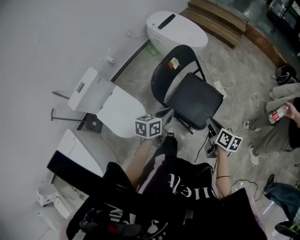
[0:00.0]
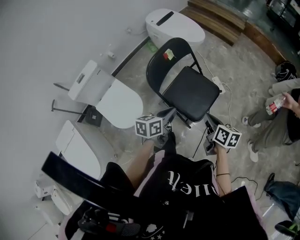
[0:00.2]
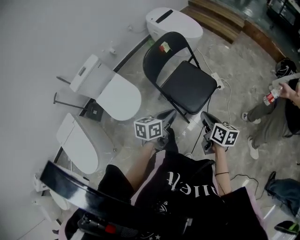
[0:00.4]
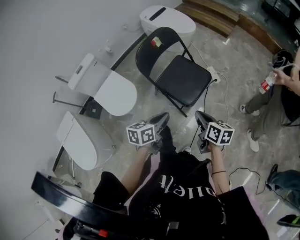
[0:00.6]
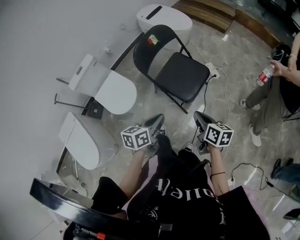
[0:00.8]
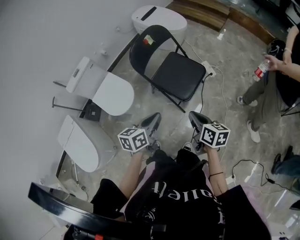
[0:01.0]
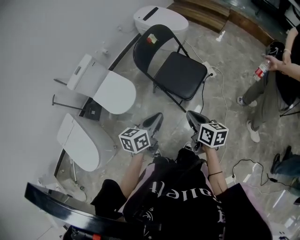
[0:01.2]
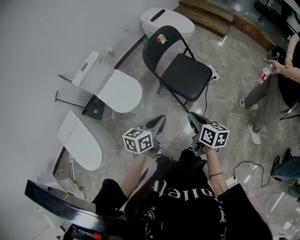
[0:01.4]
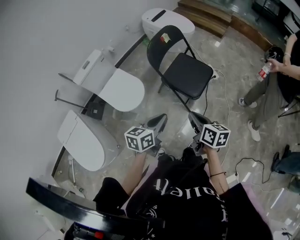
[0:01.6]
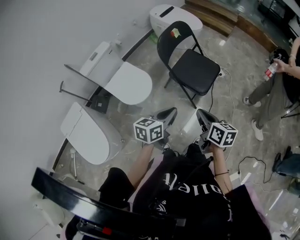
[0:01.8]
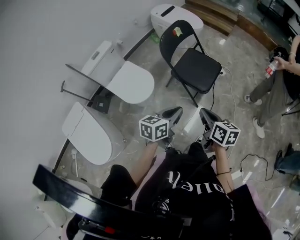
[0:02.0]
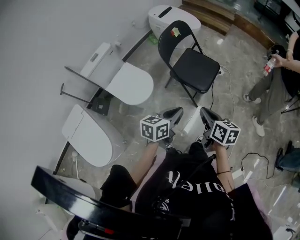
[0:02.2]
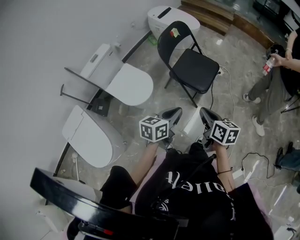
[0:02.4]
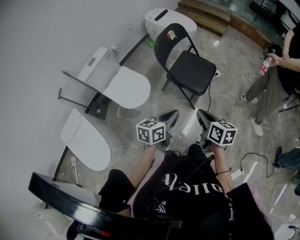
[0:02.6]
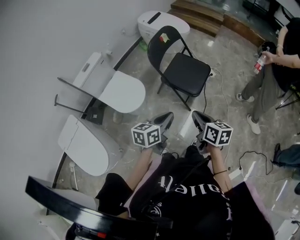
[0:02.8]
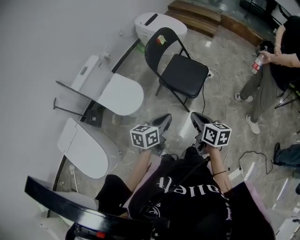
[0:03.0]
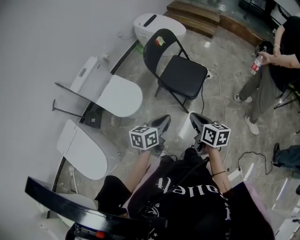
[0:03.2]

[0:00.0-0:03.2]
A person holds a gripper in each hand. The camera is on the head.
0:00.0 to 0:01.6: The two grippers go roughly 30 cm backward.
0:01.6 to 0:03.2: There are only small adjustments of the grippers.

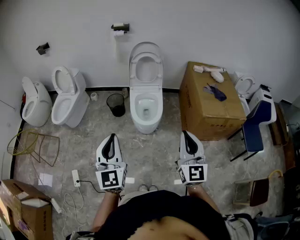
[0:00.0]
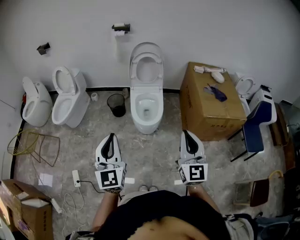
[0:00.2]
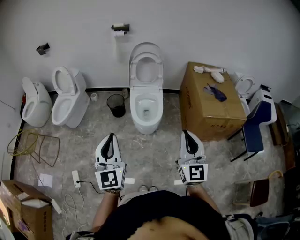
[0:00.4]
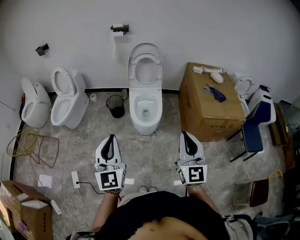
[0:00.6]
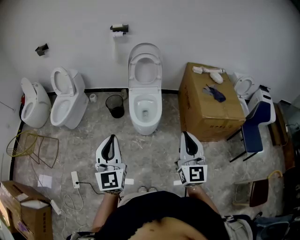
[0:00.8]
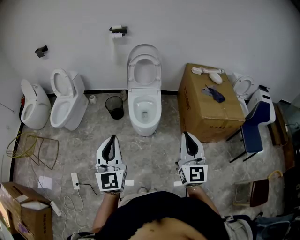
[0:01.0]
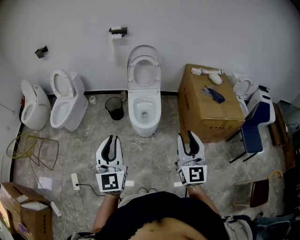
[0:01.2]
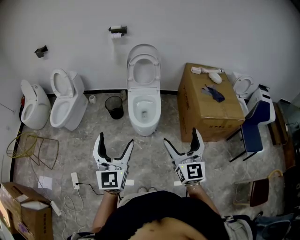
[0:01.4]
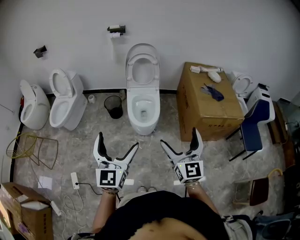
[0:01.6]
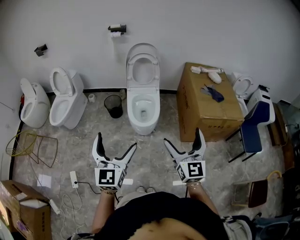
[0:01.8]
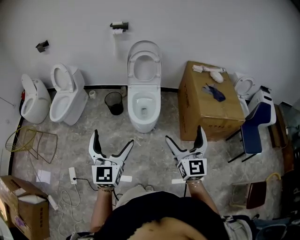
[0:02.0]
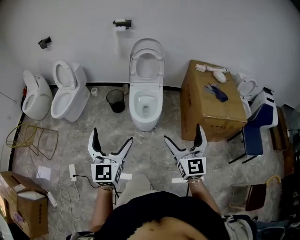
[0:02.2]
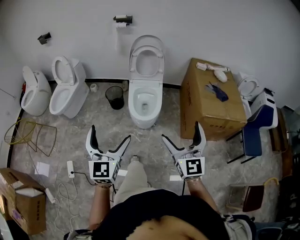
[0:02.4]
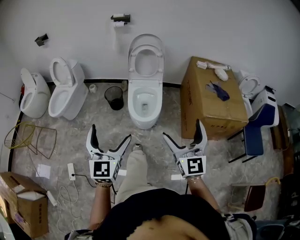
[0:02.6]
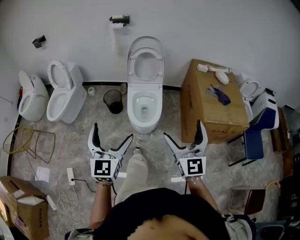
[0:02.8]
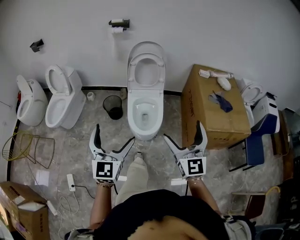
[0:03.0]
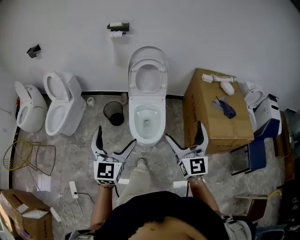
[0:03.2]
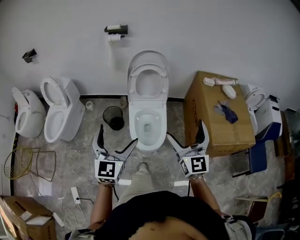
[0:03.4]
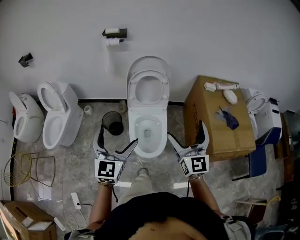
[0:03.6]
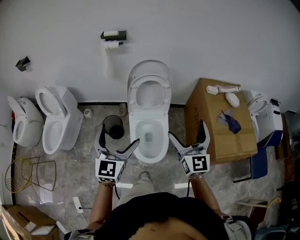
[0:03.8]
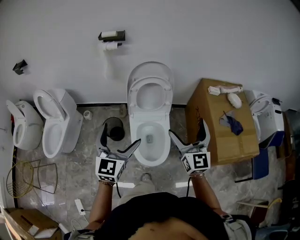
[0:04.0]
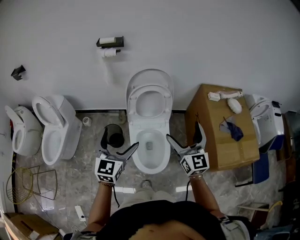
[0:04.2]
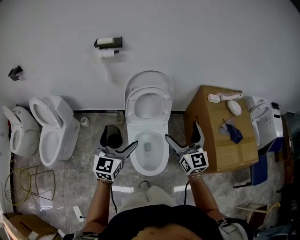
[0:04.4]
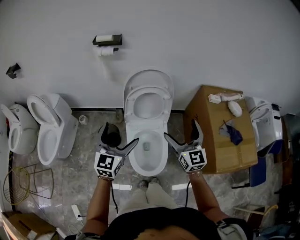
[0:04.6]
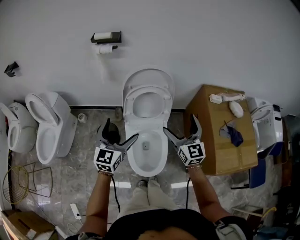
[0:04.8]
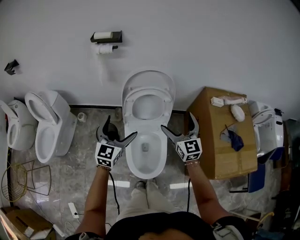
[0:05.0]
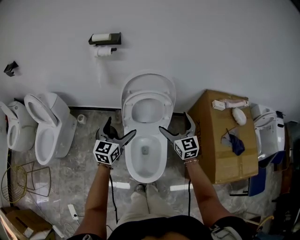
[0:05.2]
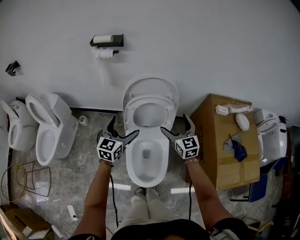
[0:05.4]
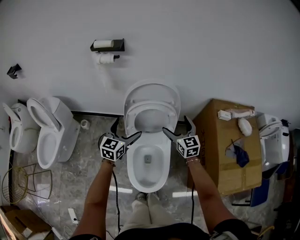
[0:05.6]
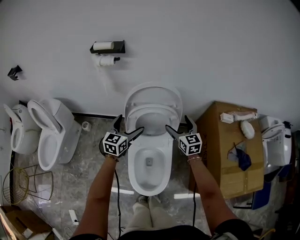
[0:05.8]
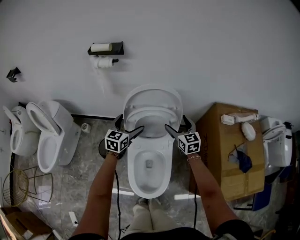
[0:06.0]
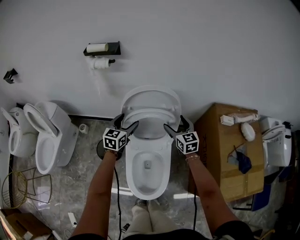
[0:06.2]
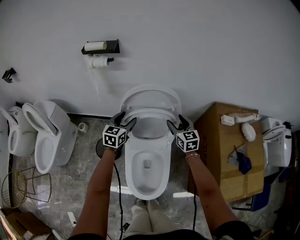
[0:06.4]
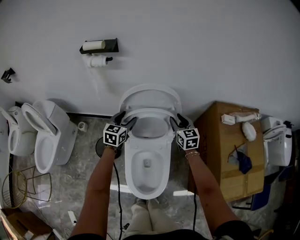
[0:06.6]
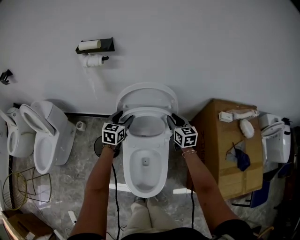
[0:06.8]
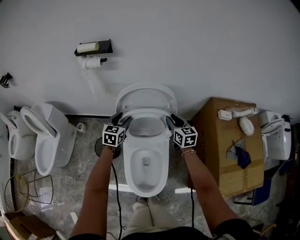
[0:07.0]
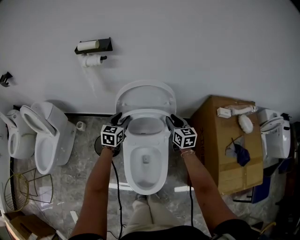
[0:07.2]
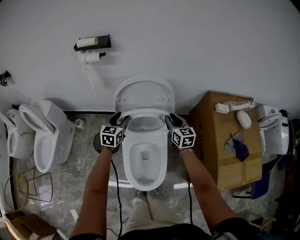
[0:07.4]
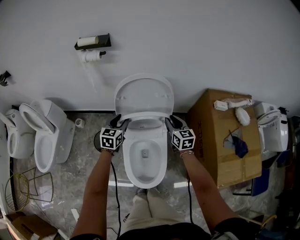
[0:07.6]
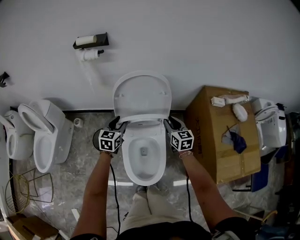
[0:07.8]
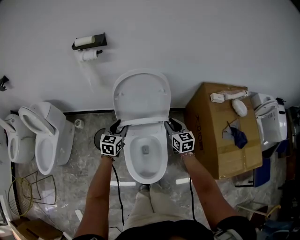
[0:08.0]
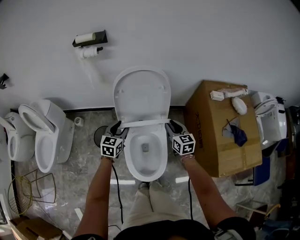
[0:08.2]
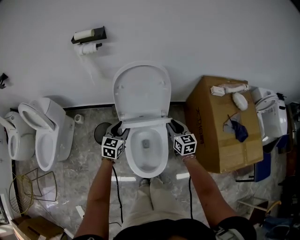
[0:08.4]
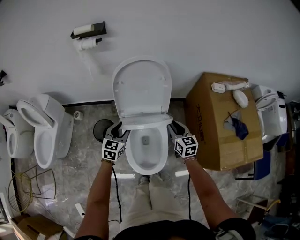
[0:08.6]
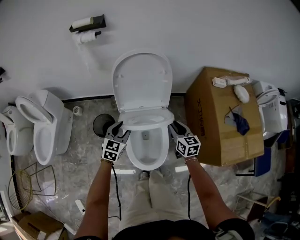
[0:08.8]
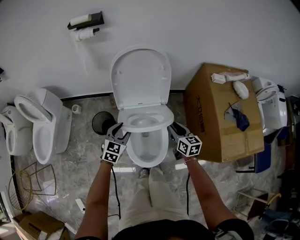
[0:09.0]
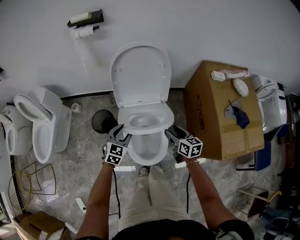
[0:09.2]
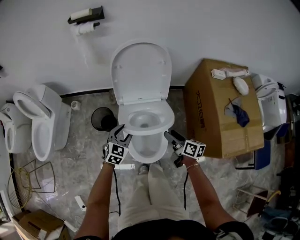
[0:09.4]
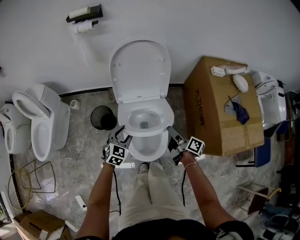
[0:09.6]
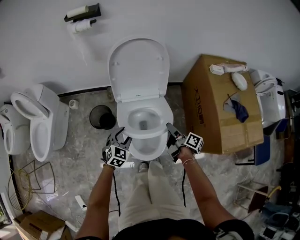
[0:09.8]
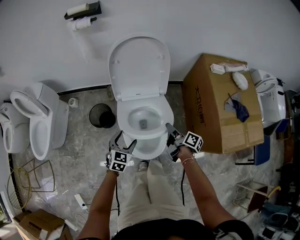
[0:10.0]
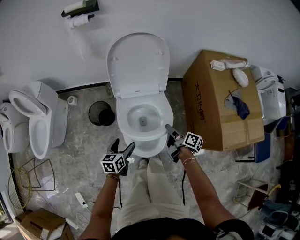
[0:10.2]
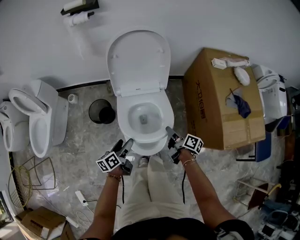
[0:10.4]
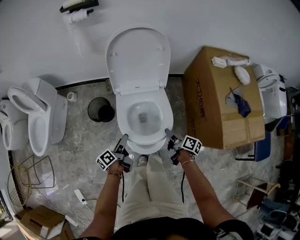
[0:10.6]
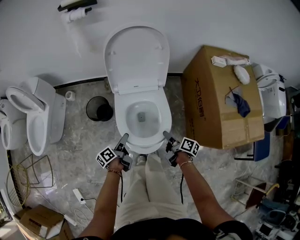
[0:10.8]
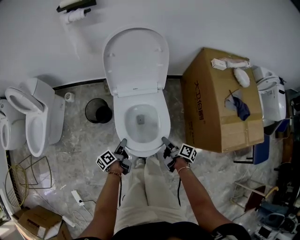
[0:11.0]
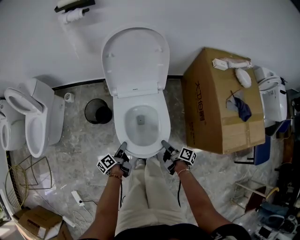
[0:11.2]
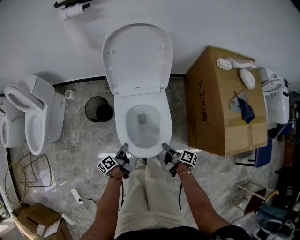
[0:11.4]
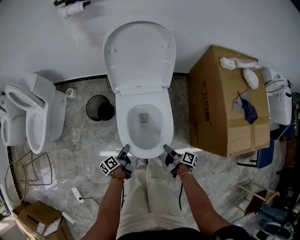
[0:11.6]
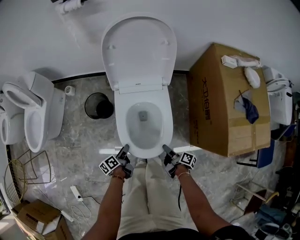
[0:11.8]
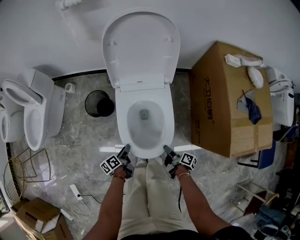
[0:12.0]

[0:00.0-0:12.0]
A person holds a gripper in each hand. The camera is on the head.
0:00.0 to 0:01.6: The right gripper opens up; the left gripper opens.
0:01.6 to 0:03.0: Both grippers travel together forward, some 15 cm.
0:03.0 to 0:04.4: Both grippers move forward, roughly 40 cm.
0:04.4 to 0:06.0: Both grippers travel together forward and downward, roughly 35 cm. The right gripper swivels approximately 20 degrees.
0:06.0 to 0:07.6: The left gripper travels forward and back again, about 5 cm each way, and closes. Meanwhile the right gripper moves approximately 5 cm, and closes.
0:07.6 to 0:09.0: Both grippers move backward, some 20 cm.
0:09.0 to 0:10.4: The two grippers go some 15 cm backward and downward. The left gripper rolls counterclockwise, seen from behind, by some 70 degrees, and opens. Meanwhile the right gripper twists approximately 50 degrees clockwise, seen from behind.
0:10.4 to 0:12.0: The left gripper travels downward by approximately 15 cm, rotates some 20 degrees, and closes its fingers, while the right gripper goes roughly 20 cm downward and backward.

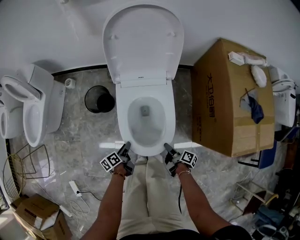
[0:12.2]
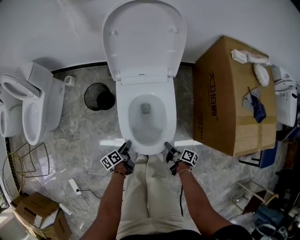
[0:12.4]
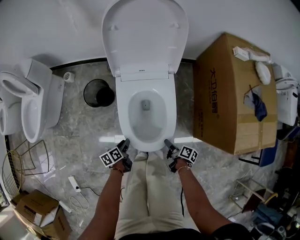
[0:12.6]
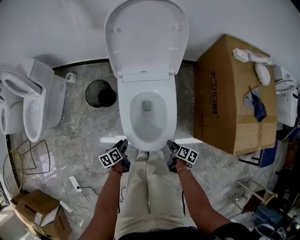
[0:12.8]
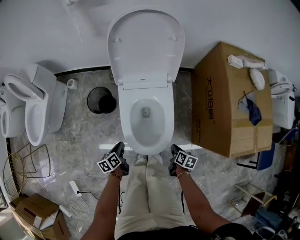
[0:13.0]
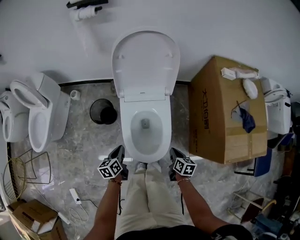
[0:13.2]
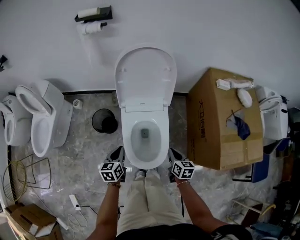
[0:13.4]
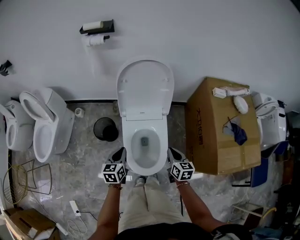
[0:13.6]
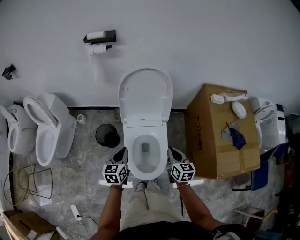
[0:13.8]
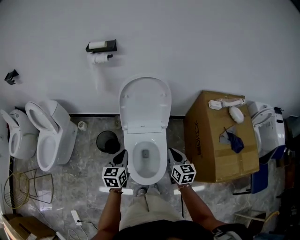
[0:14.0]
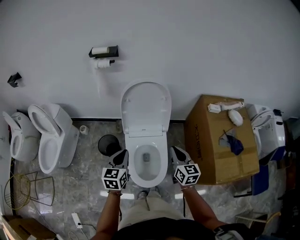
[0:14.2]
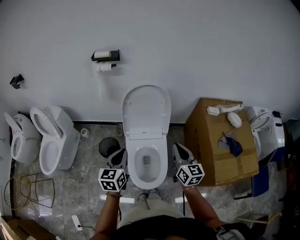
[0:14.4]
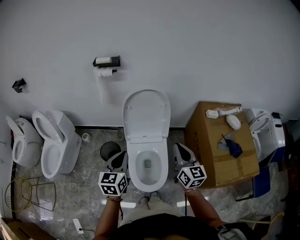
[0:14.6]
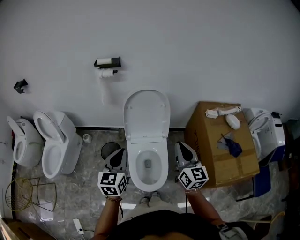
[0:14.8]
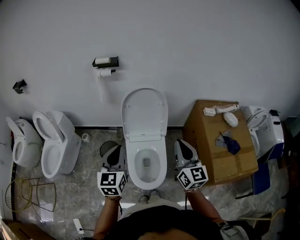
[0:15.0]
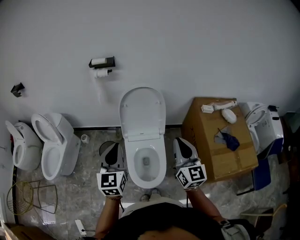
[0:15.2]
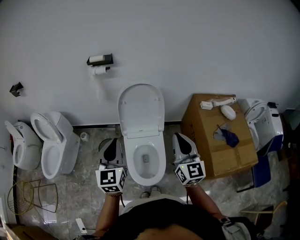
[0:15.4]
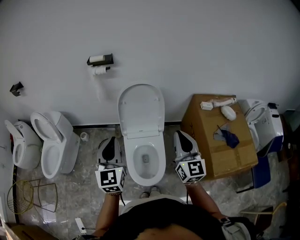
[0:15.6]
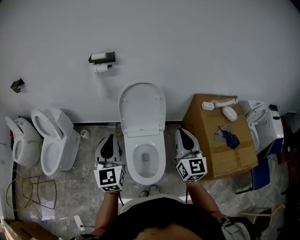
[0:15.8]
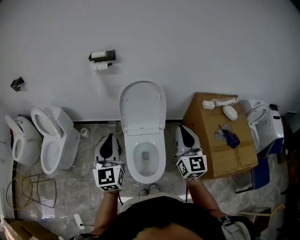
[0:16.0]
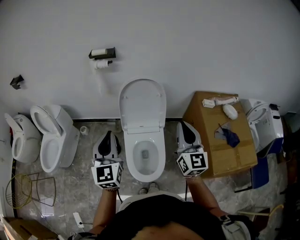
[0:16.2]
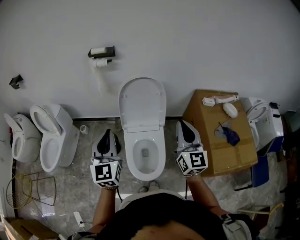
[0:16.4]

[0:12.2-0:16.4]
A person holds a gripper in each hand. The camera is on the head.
0:12.2 to 0:13.6: The left gripper goes about 25 cm upward, and twists roughly 50 degrees clockwise, seen from behind; the right gripper moves upward and forward, roughly 25 cm, and rolls counterclockwise, seen from behind, by about 70 degrees.
0:13.6 to 0:15.0: Both grippers travel together upward, roughly 30 cm. The right gripper tilts its fingers some 30 degrees upward, while the left gripper changes its angle by some 30 degrees.
0:15.0 to 0:16.4: The left gripper moves about 5 cm.

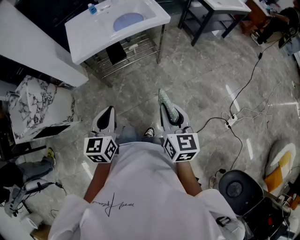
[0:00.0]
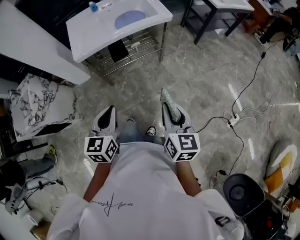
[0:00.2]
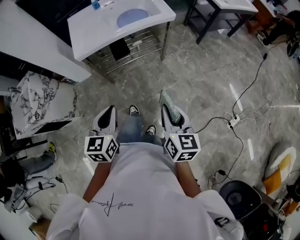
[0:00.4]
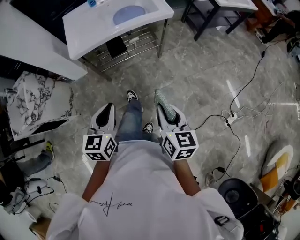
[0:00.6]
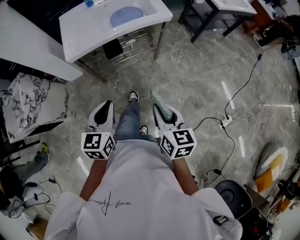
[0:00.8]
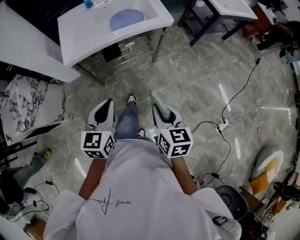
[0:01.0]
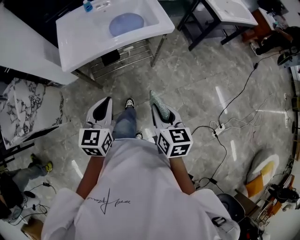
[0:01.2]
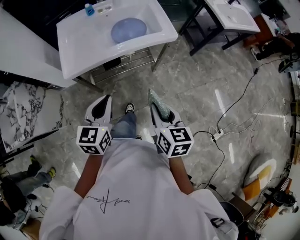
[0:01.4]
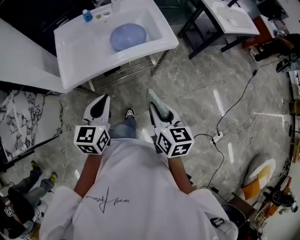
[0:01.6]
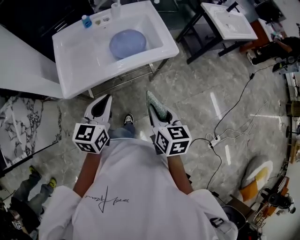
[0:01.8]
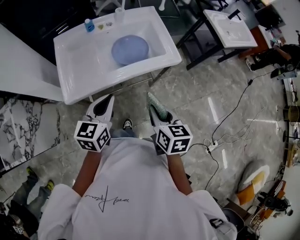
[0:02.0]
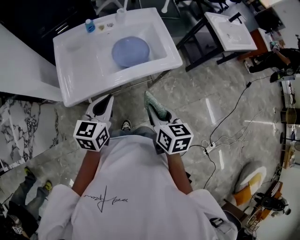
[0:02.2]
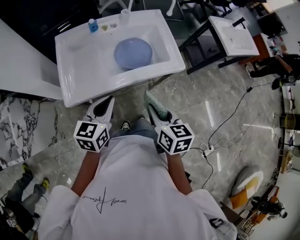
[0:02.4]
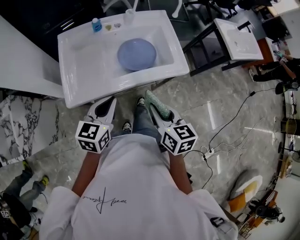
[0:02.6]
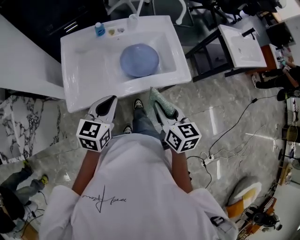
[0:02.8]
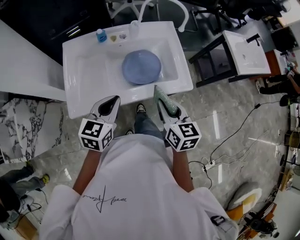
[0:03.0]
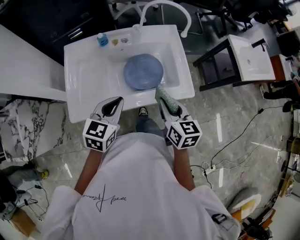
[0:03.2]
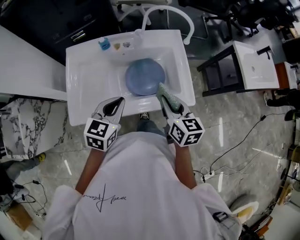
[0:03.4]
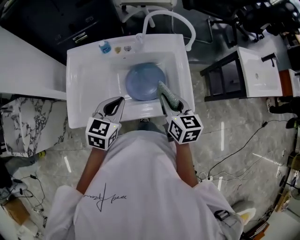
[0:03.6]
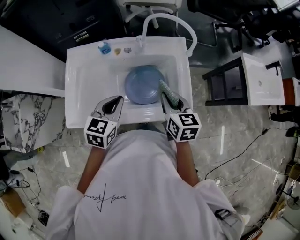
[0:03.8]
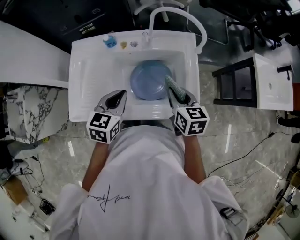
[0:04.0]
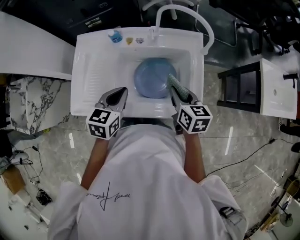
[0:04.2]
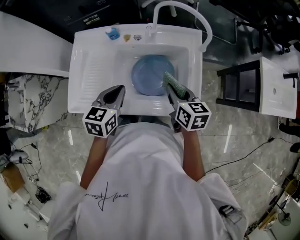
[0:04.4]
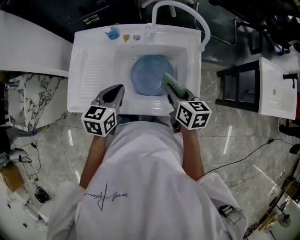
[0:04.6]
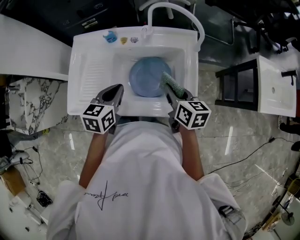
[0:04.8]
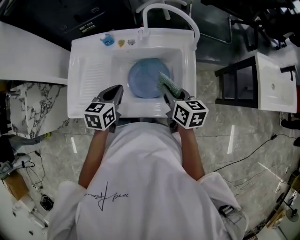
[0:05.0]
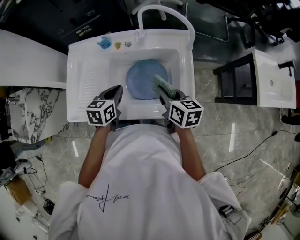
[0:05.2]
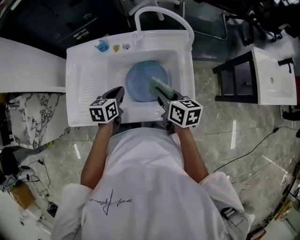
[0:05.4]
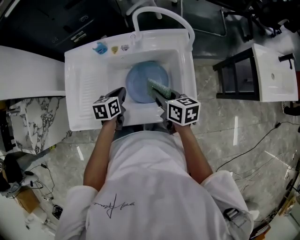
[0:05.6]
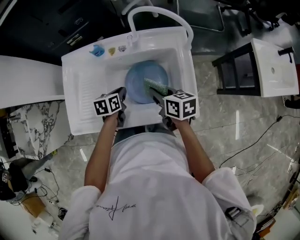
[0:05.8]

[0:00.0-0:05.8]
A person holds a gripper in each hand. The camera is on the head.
0:00.0 to 0:01.4: Both grippers travel together forward, approximately 20 cm.
0:01.4 to 0:02.8: Both grippers travel together forward, about 20 cm.
0:02.8 to 0:04.4: The left gripper heads forward, covering roughly 15 cm, and swivels some 20 degrees. Meanwhile the right gripper shifts some 25 cm forward.
0:04.4 to 0:05.8: The left gripper shifts about 15 cm downward and forward, and rotates about 20 degrees, while the right gripper shifts by about 5 cm.
